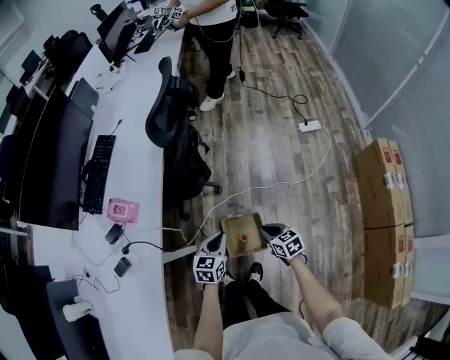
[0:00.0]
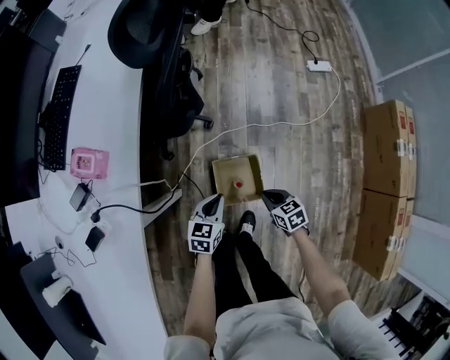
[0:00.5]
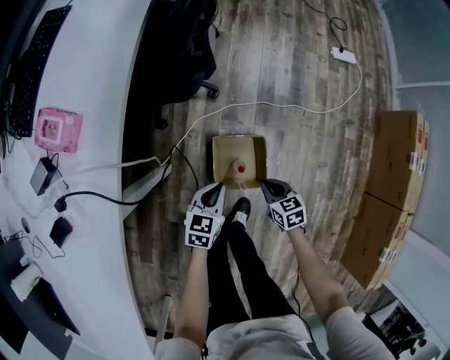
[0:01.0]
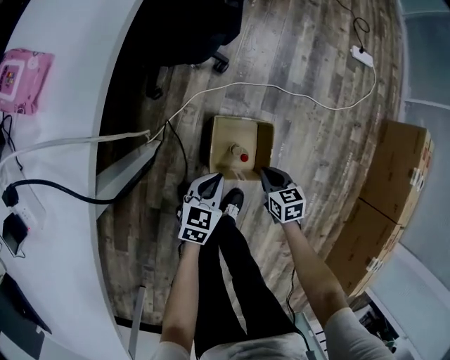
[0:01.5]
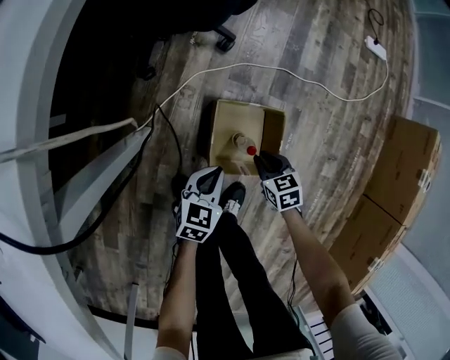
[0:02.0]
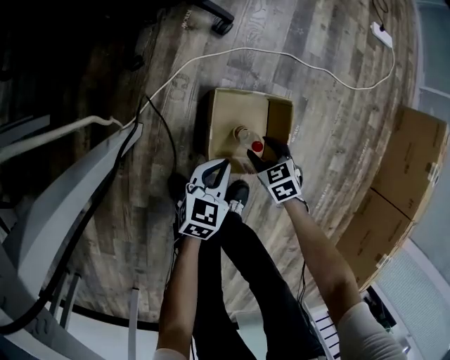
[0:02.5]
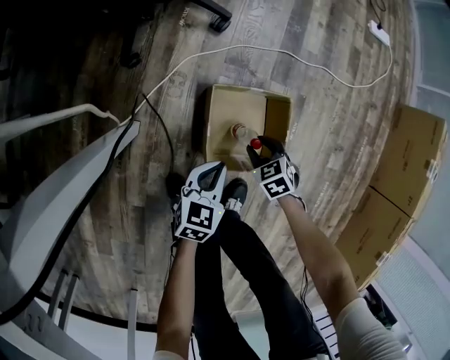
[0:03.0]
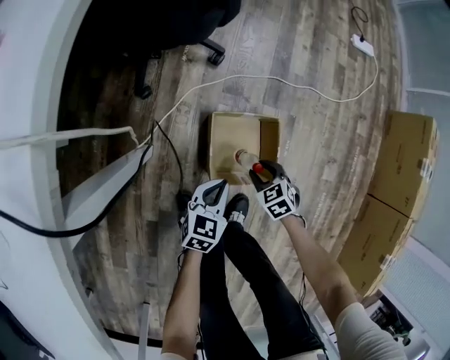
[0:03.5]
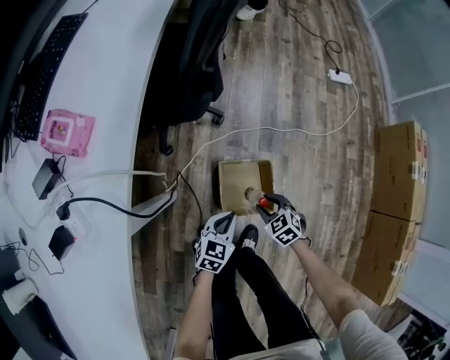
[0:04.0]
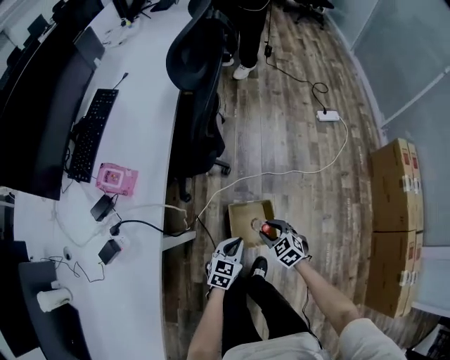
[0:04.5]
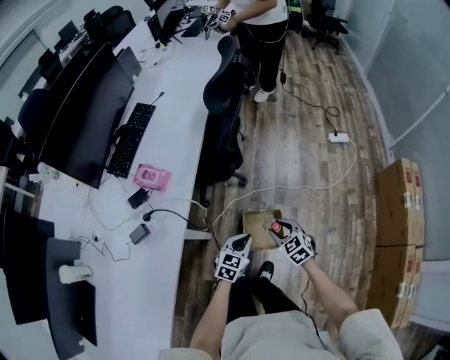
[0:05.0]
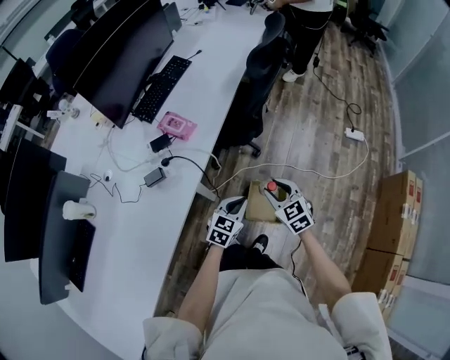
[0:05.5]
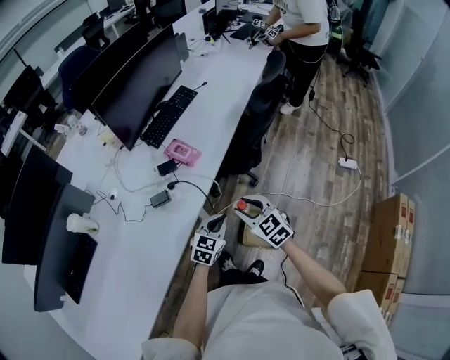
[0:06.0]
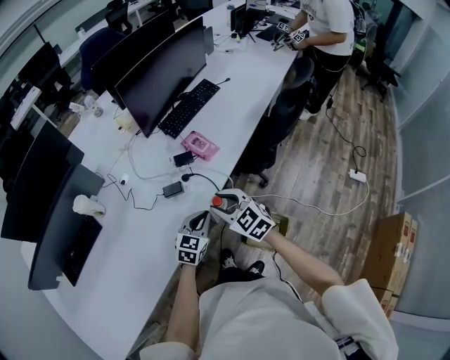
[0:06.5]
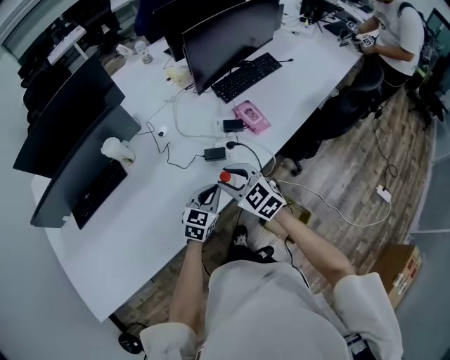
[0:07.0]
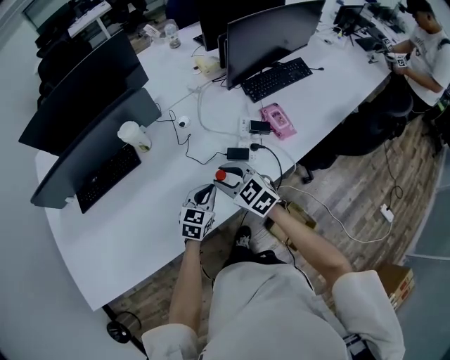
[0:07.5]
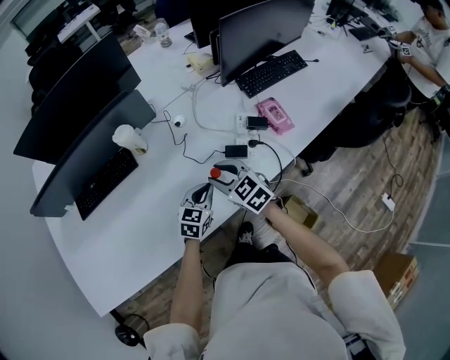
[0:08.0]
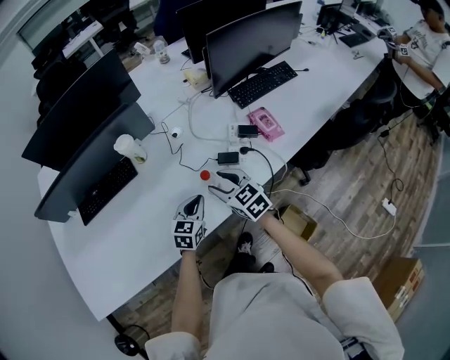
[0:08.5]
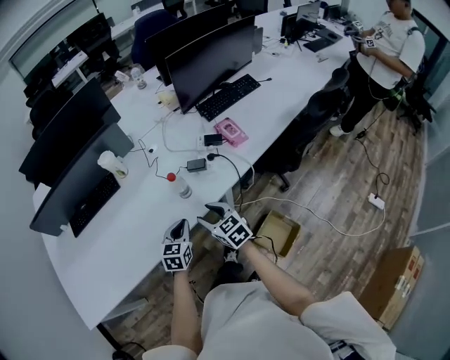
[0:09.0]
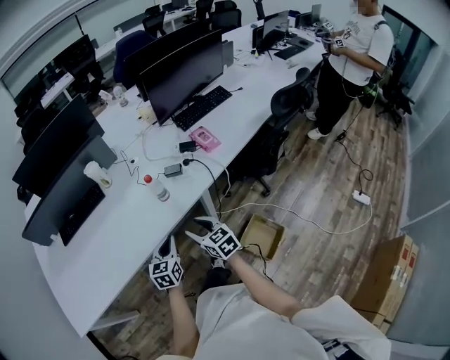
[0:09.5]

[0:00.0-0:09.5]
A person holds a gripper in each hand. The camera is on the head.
0:00.0 to 0:02.0: Both grippers move downward, approximately 50 cm.
0:02.0 to 0:04.0: The grippers both shift upward by roughly 15 cm.
0:04.0 to 0:05.5: The grippers both shift upward by some 40 cm. The right gripper swivels about 30 degrees.
0:05.5 to 0:07.5: The pair of grippers is taken approximately 50 cm. The right gripper rotates roughly 50 degrees. The left gripper swivels some 40 degrees.
0:07.5 to 0:09.5: The two grippers go some 25 cm backward. The right gripper swivels approximately 30 degrees.

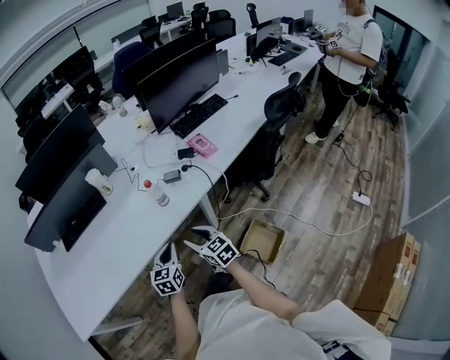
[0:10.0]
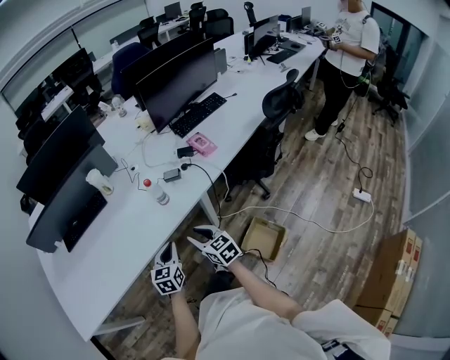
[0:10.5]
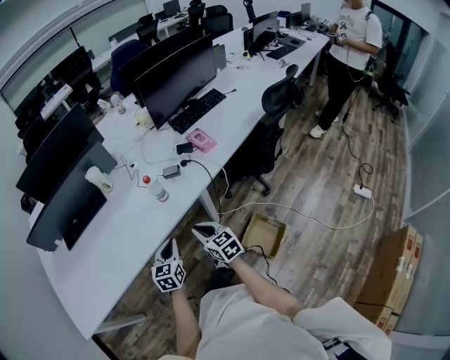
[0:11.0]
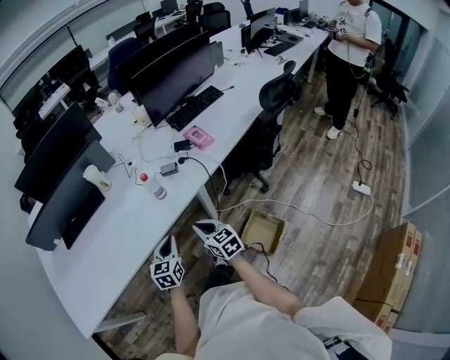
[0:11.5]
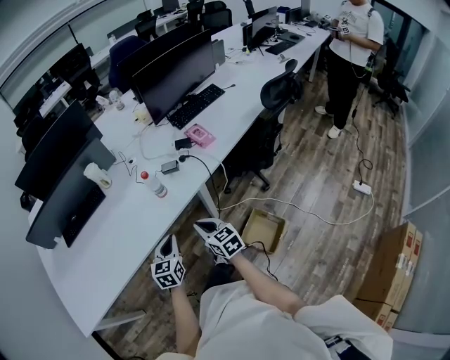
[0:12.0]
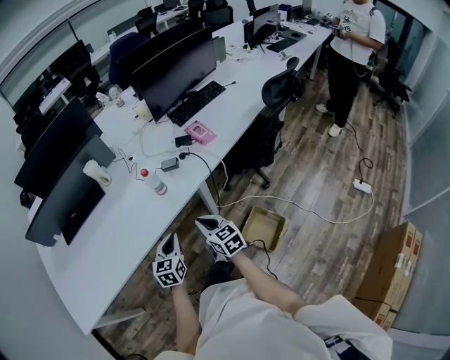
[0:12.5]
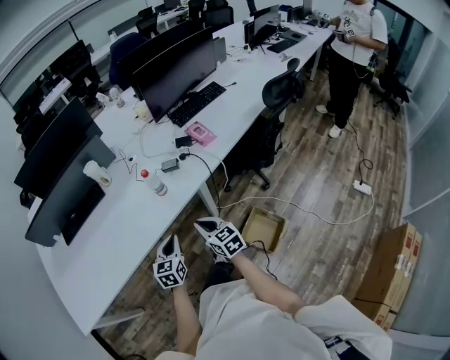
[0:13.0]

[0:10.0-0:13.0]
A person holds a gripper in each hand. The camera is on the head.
0:10.0 to 0:11.5: The right gripper closes its fingers.
0:11.5 to 0:13.0: The grippers stay close to where they were, moving slightly.

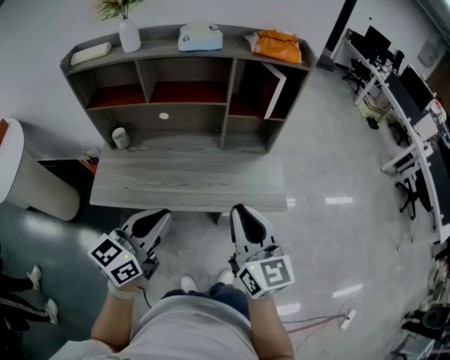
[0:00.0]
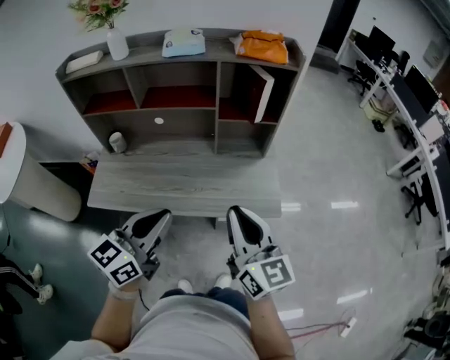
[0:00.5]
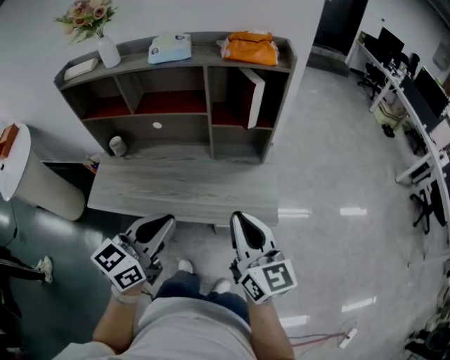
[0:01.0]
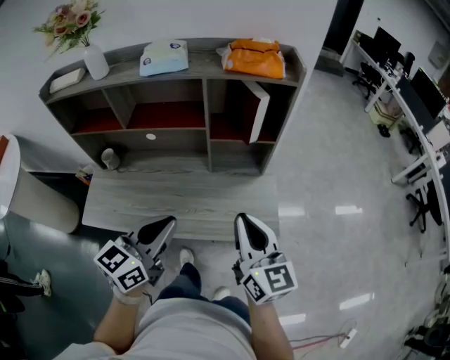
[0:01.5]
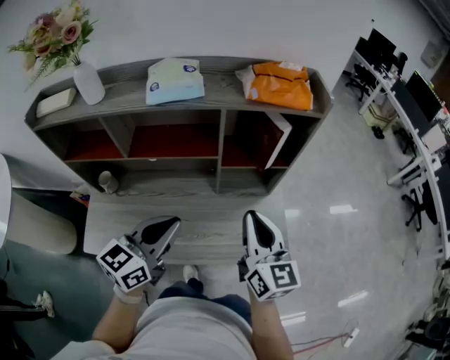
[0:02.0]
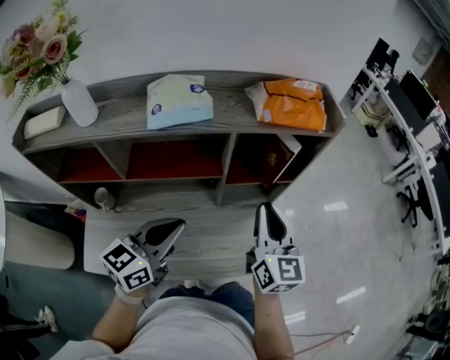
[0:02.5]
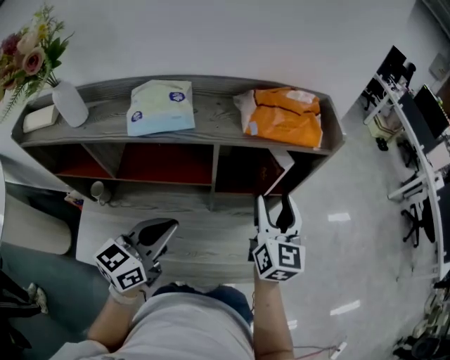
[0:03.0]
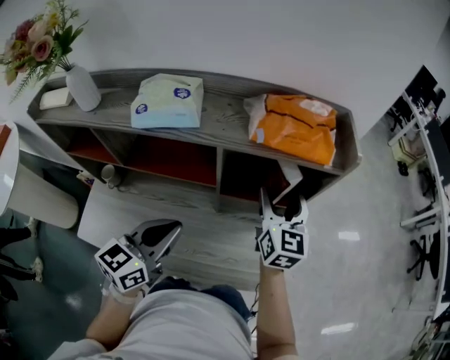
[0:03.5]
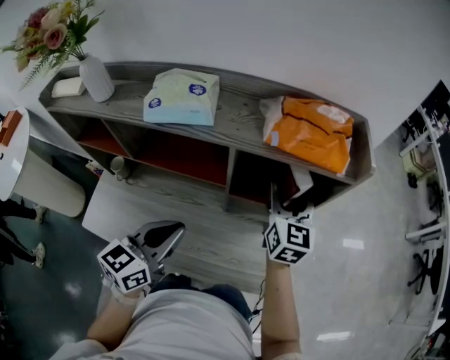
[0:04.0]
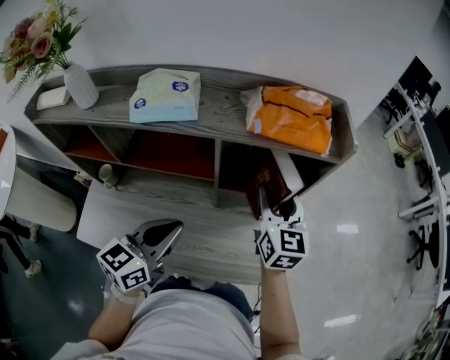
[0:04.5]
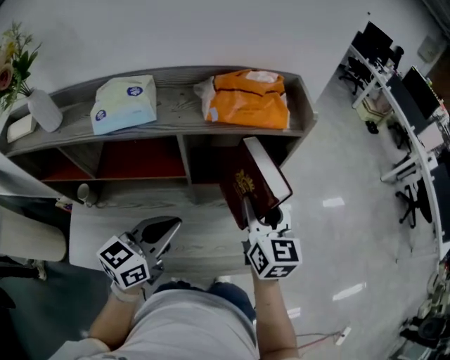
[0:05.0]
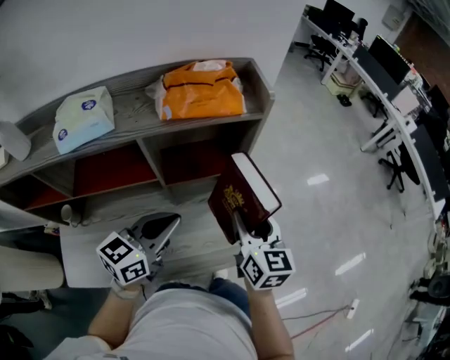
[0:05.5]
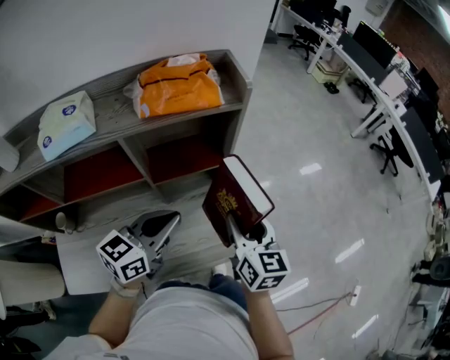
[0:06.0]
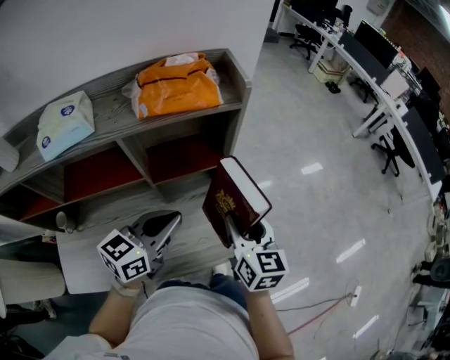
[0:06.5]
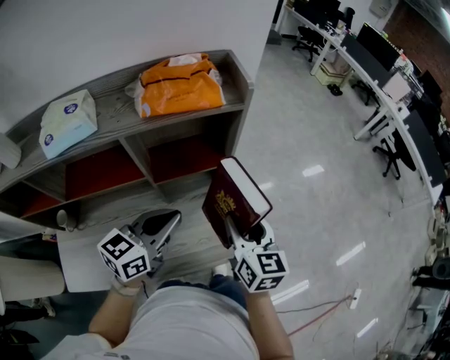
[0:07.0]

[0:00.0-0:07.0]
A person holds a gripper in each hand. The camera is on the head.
0:00.0 to 0:02.0: Both grippers travel together forward, some 25 cm.
0:02.0 to 0:03.5: The left gripper shifts some 10 cm forward, while the right gripper shifts approximately 25 cm forward, and opens.
0:03.5 to 0:05.0: The right gripper heads backward, covering some 10 cm.
0:05.0 to 0:07.0: The right gripper heads to the right and backward, covering approximately 10 cm. The left gripper shifts approximately 5 cm to the right.

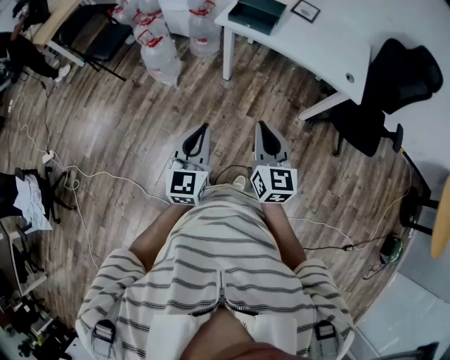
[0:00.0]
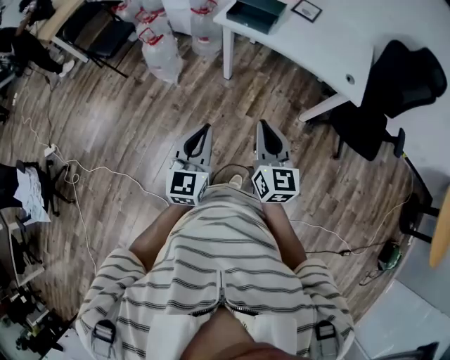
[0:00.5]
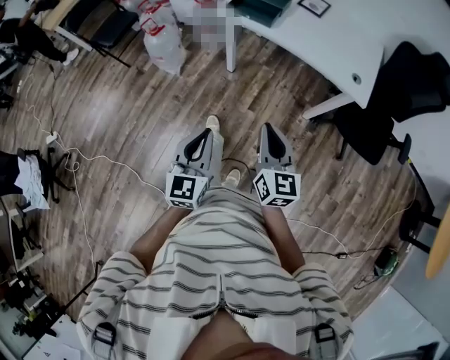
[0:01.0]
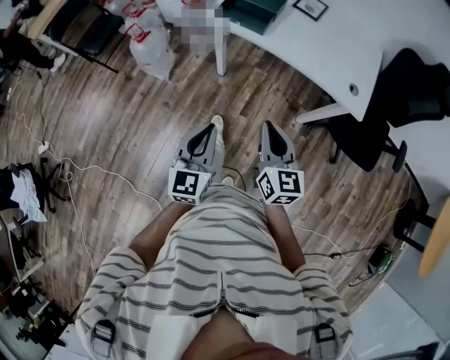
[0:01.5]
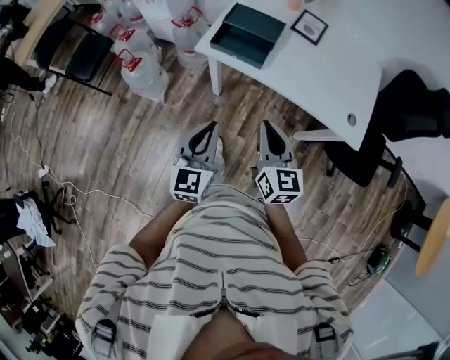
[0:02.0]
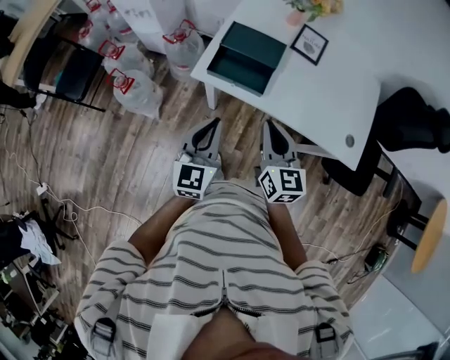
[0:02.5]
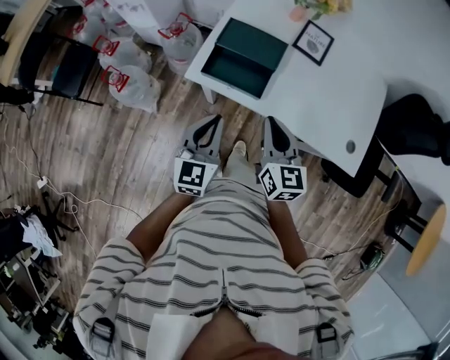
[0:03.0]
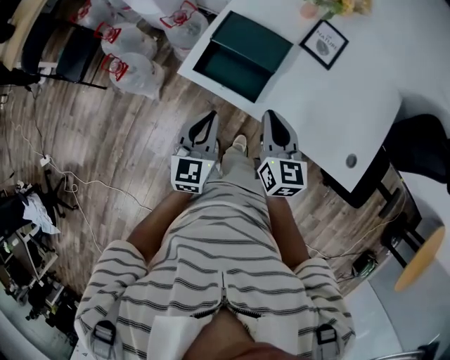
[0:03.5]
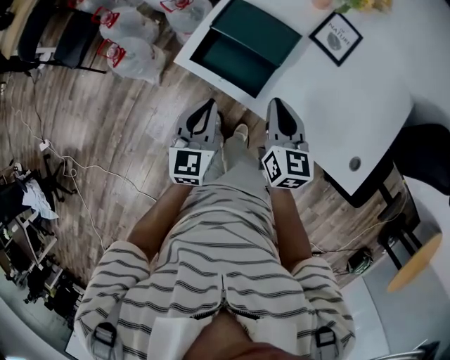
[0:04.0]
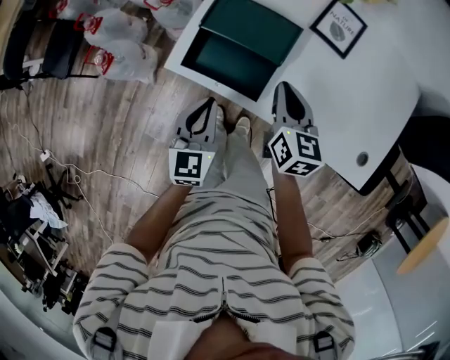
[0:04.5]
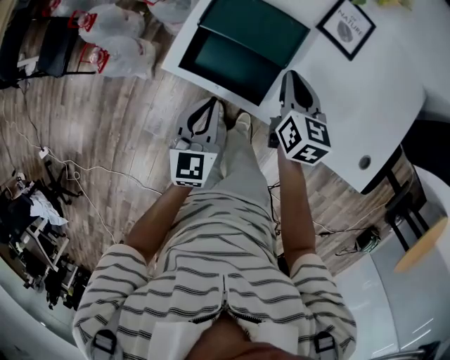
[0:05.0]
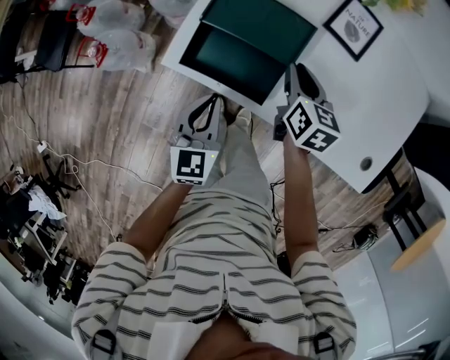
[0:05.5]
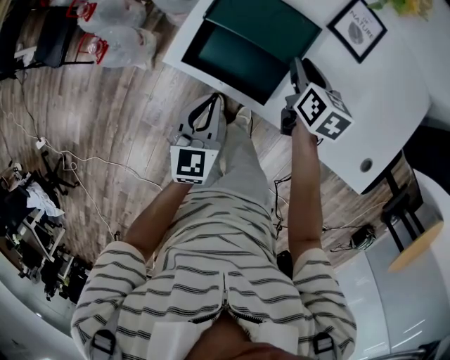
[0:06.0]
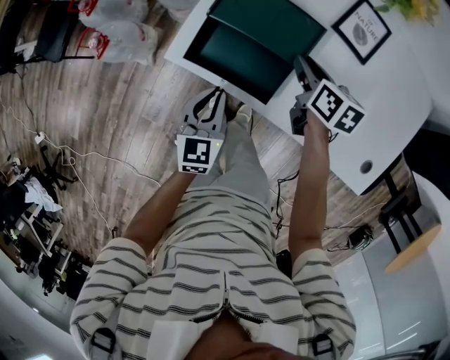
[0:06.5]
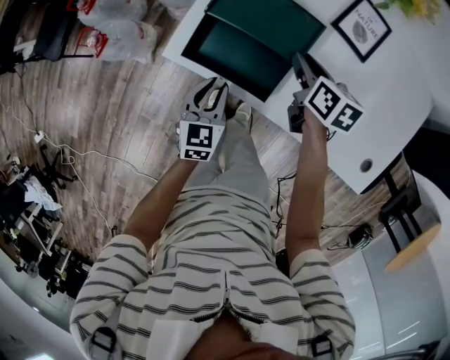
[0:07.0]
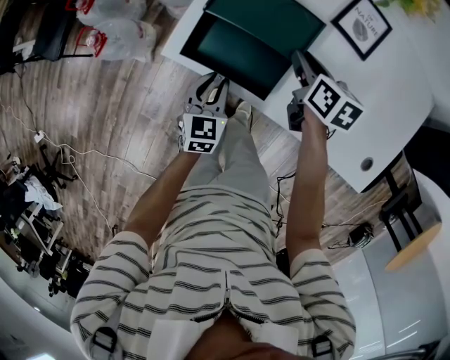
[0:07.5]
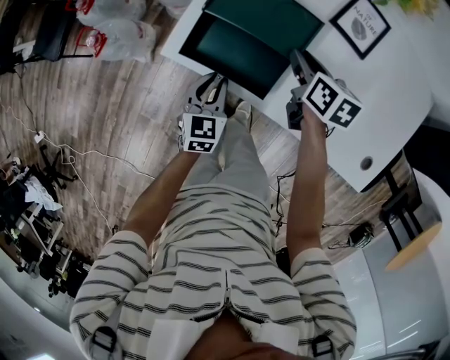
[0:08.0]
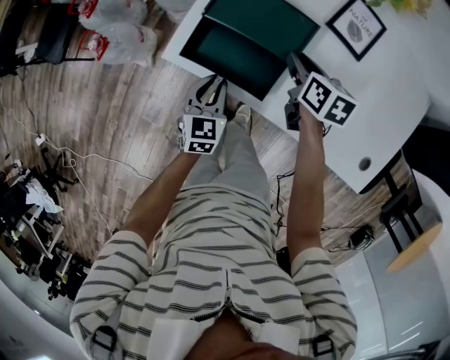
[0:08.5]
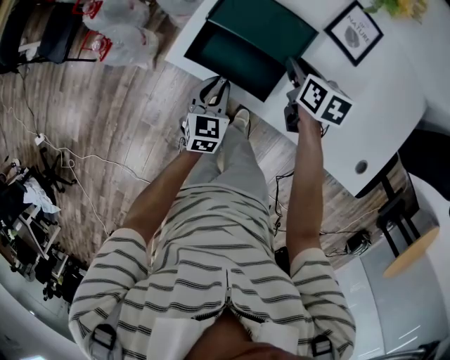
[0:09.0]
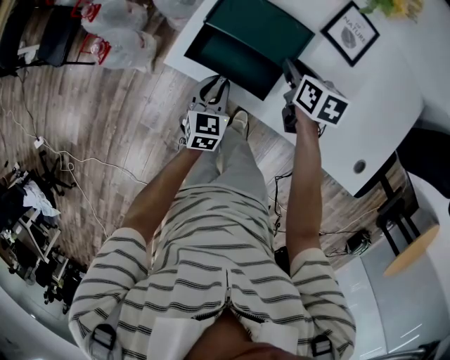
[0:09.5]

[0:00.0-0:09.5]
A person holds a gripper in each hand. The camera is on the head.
0:00.0 to 0:02.0: Both grippers travel together forward, approximately 30 cm.
0:02.0 to 0:04.0: Both grippers move forward, approximately 30 cm.
0:04.0 to 0:05.5: The right gripper moves forward and downward, roughly 15 cm. Meanwhile the left gripper heads downward, covering approximately 5 cm.
0:05.5 to 0:07.5: The left gripper moves downward, approximately 10 cm, and opens up.
0:07.5 to 0:09.5: The grippers move only a little.
